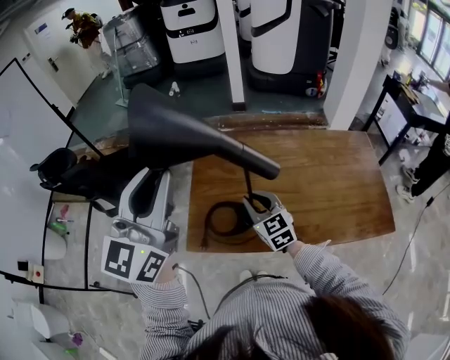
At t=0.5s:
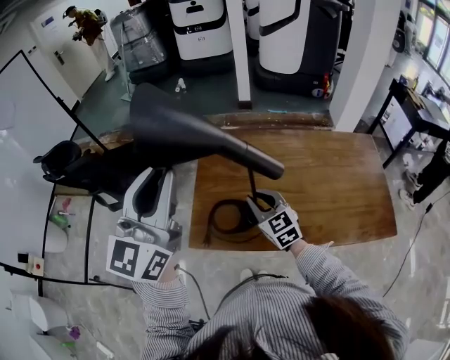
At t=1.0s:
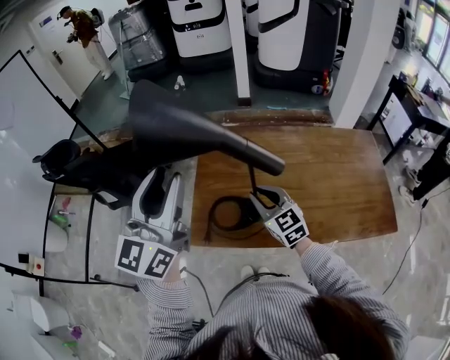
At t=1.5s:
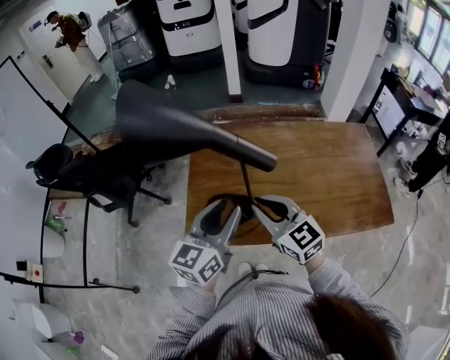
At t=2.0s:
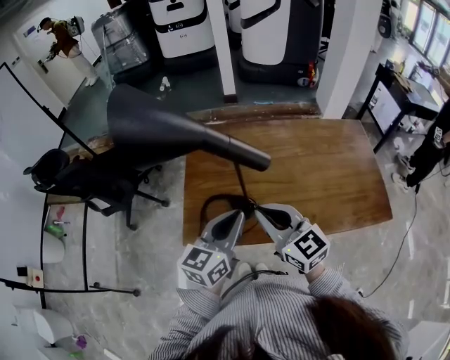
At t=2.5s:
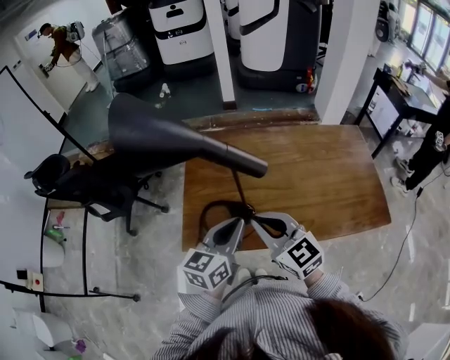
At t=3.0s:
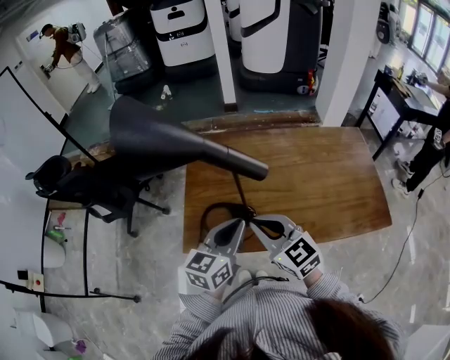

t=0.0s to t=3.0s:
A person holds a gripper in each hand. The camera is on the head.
t=0.0s to t=1.5s: The left gripper is displaced downward and to the right by roughly 20 cm, changes its angle by roughly 30 degrees, and opens its fingers. The right gripper moves backward and upward, about 10 cm.
t=1.5s to t=3.0s: The left gripper changes place by about 5 cm, and closes up.

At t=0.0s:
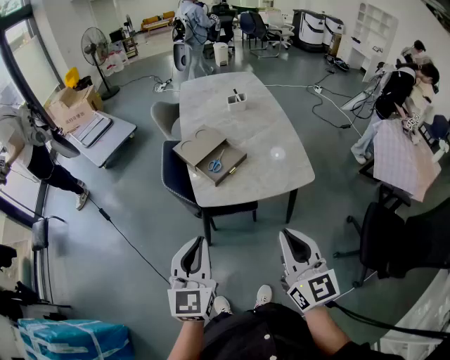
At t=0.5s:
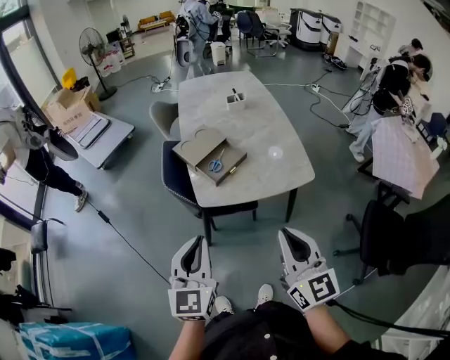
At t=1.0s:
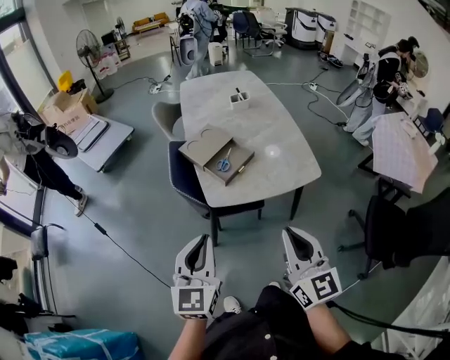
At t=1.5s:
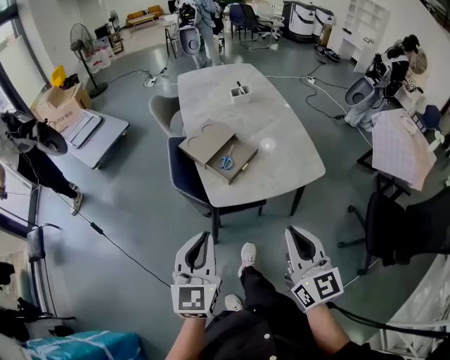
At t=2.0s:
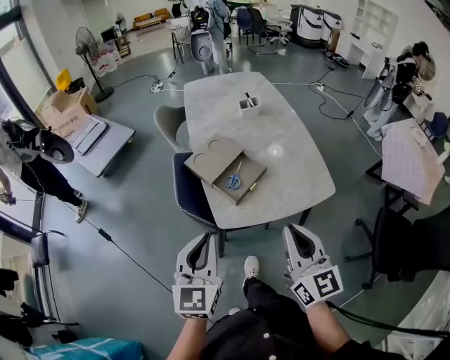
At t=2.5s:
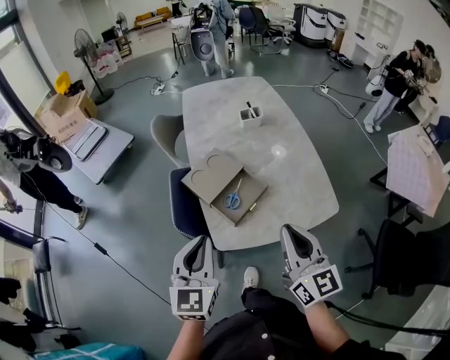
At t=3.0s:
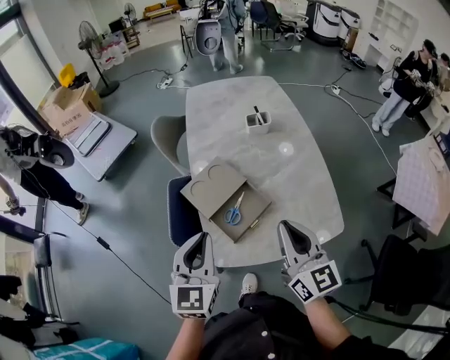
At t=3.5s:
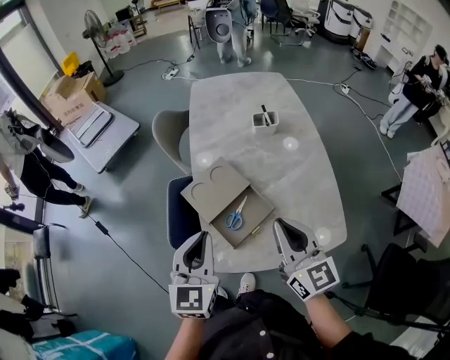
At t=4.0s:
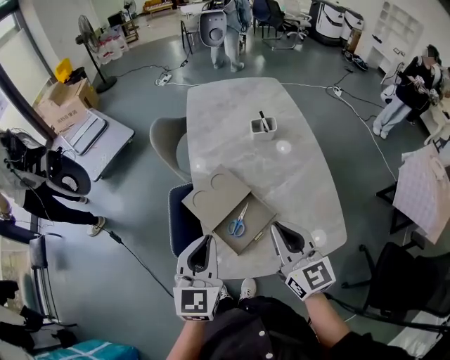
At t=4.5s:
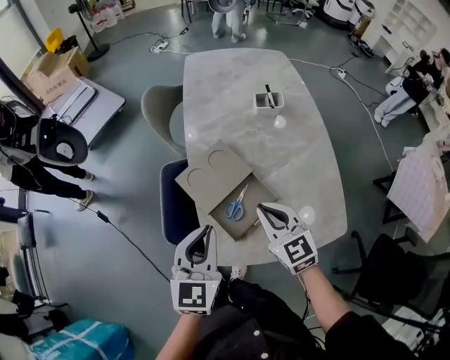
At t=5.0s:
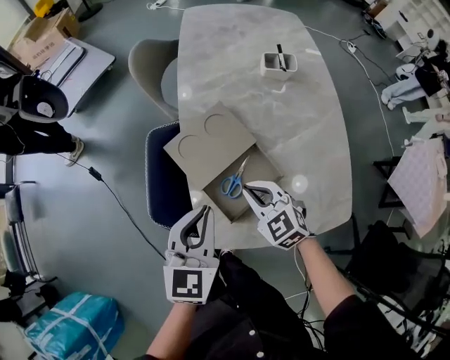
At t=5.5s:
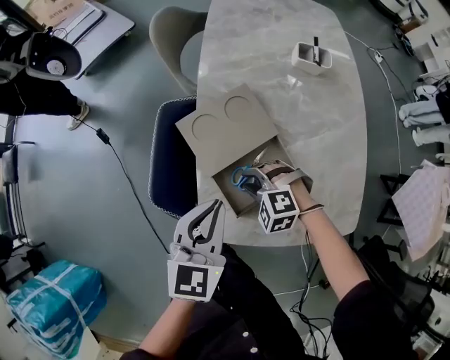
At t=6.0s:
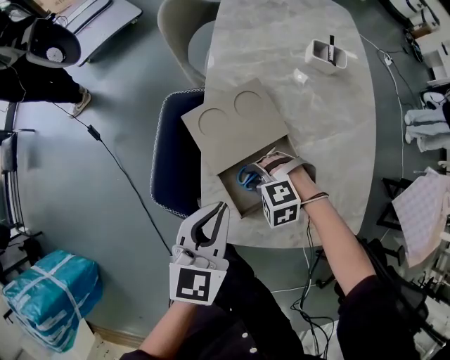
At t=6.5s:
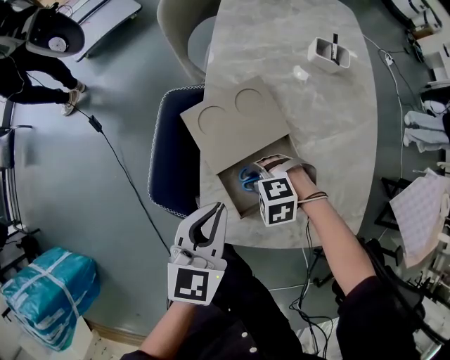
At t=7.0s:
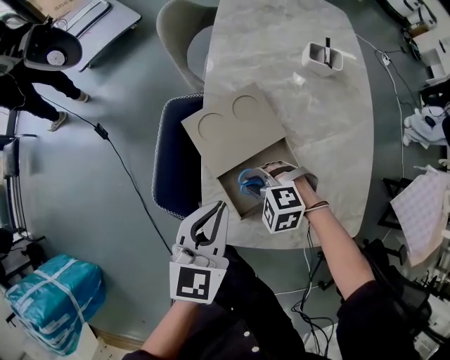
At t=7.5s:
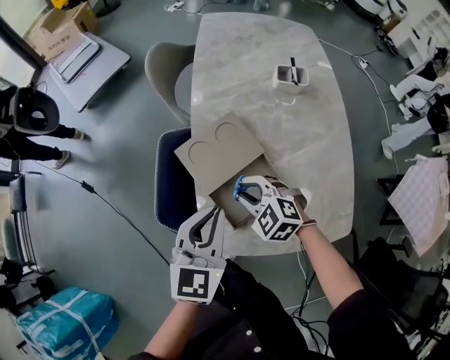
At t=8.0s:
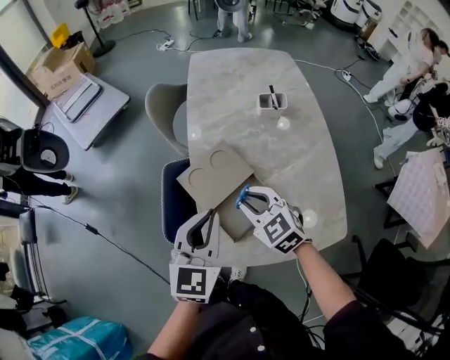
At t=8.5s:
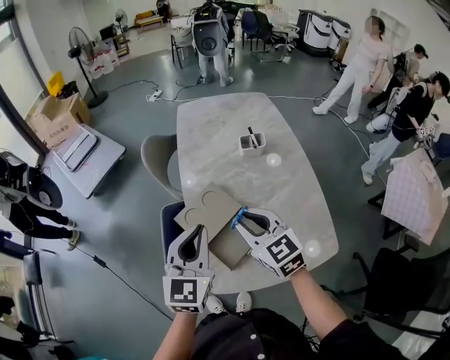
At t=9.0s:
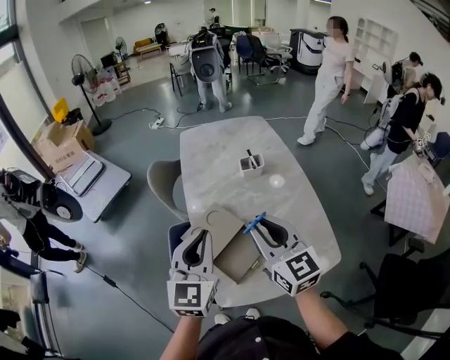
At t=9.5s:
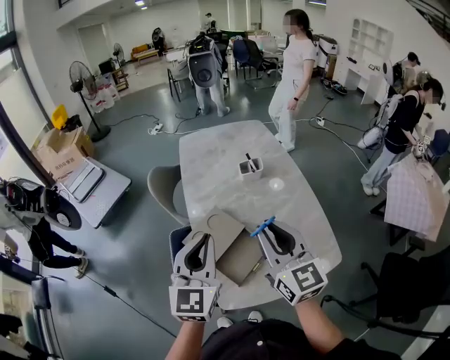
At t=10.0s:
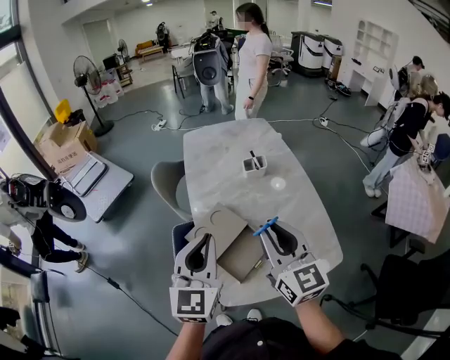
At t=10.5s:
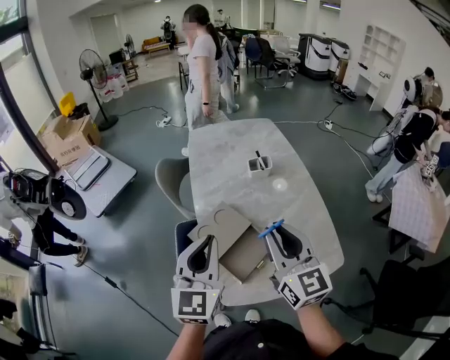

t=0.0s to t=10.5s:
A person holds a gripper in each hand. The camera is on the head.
t=0.0s to t=2.0s: The grippers both shift forward and to the left by roughly 15 cm.
t=2.0s to t=4.0s: The two grippers go some 25 cm forward.
t=4.0s to t=6.5s: The right gripper heads downward, covering roughly 35 cm, and tilts its fingers approximately 70 degrees downward; the left gripper shifts about 15 cm downward.
t=6.5s to t=8.5s: The left gripper heads upward, covering about 20 cm, and turns by about 20 degrees. Meanwhile the right gripper moves upward, approximately 35 cm, and tilts its fingers roughly 60 degrees upward.
t=8.5s to t=10.5s: The left gripper travels upward by some 5 cm. Meanwhile the right gripper is displaced upward by about 10 cm, and turns by approximately 30 degrees.

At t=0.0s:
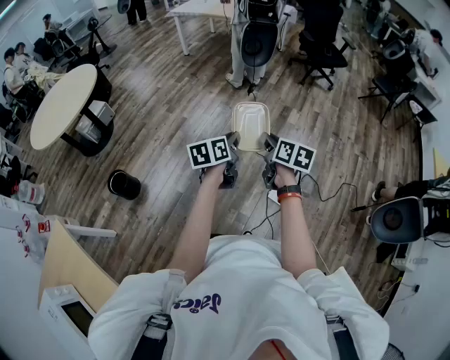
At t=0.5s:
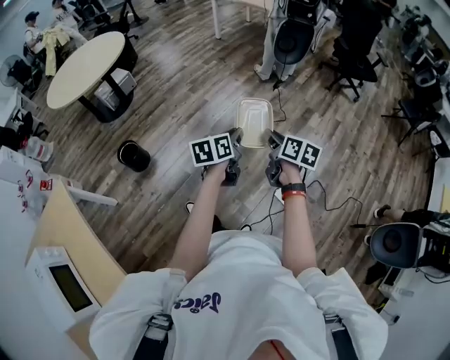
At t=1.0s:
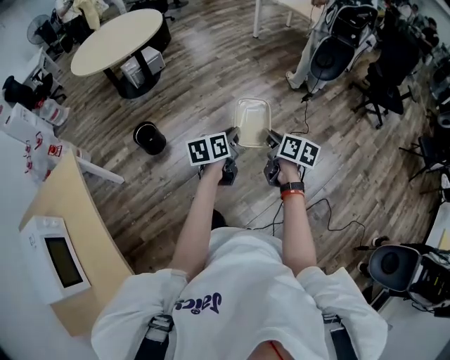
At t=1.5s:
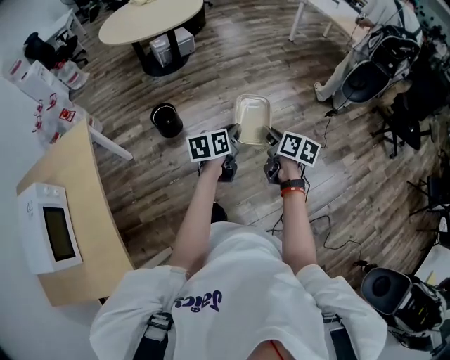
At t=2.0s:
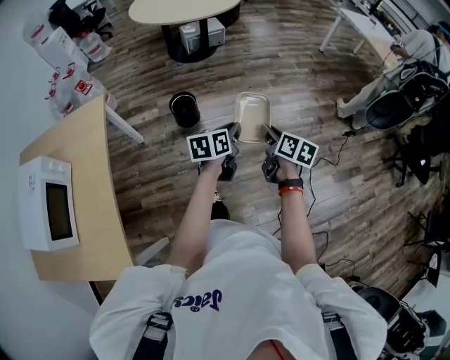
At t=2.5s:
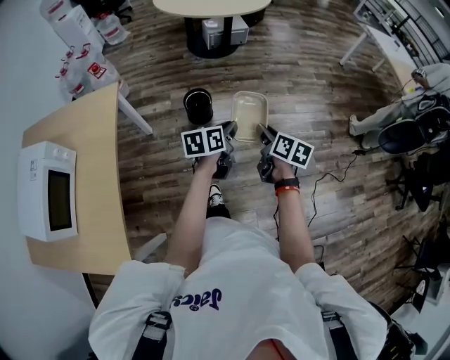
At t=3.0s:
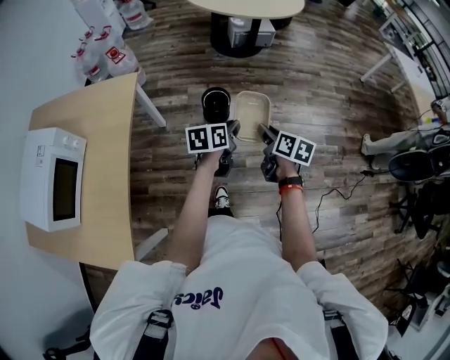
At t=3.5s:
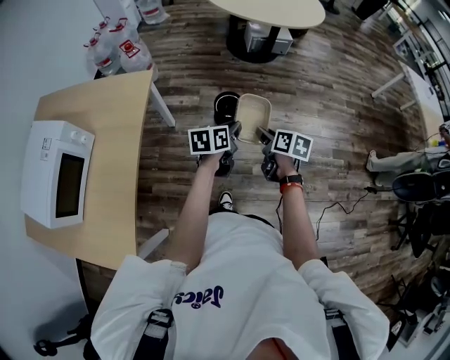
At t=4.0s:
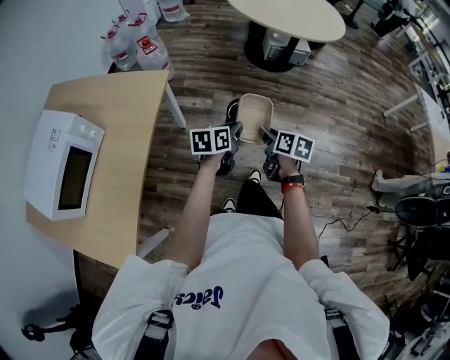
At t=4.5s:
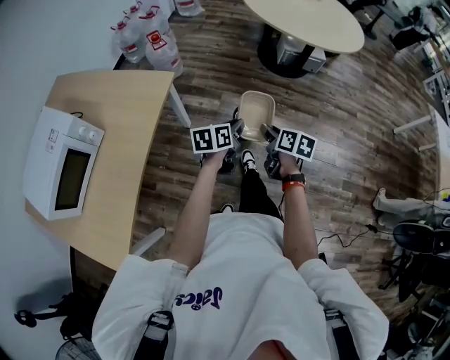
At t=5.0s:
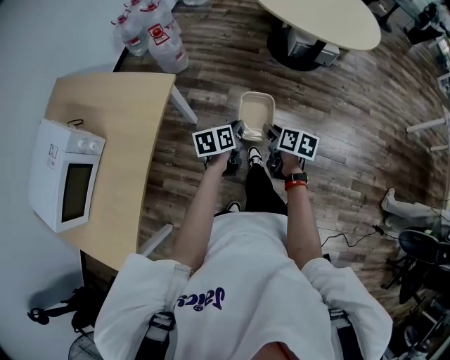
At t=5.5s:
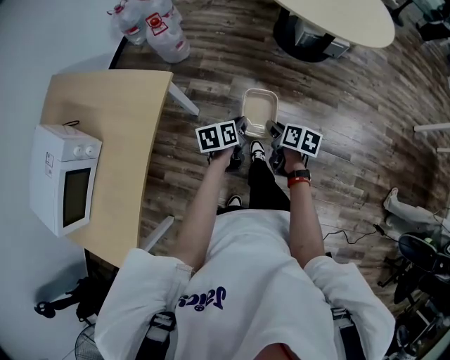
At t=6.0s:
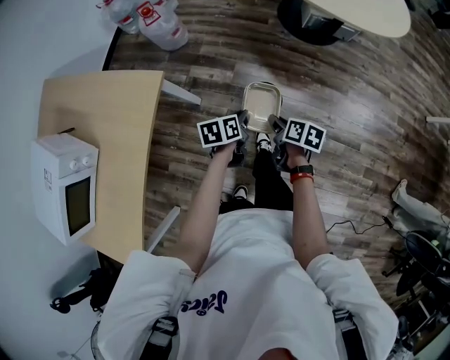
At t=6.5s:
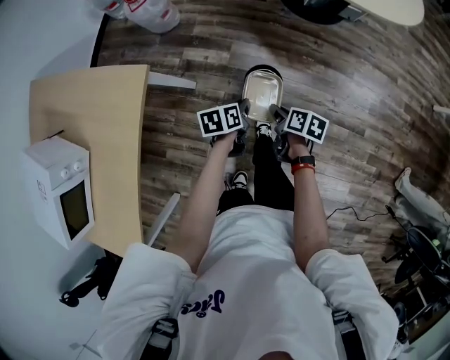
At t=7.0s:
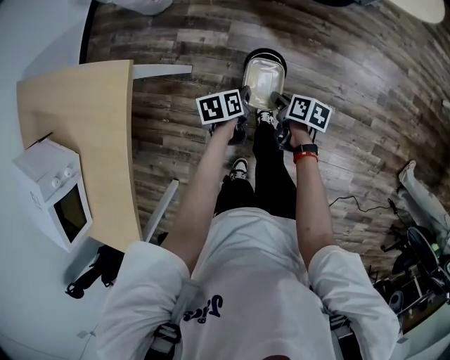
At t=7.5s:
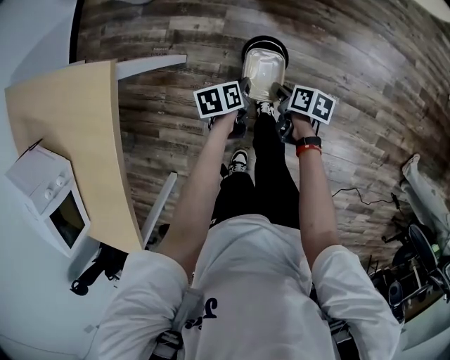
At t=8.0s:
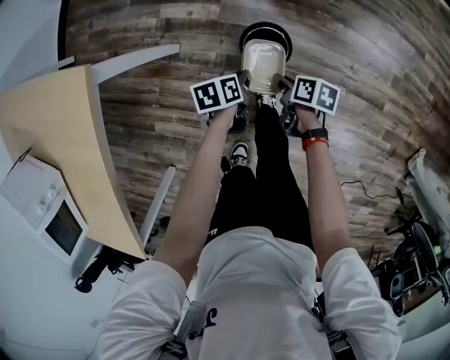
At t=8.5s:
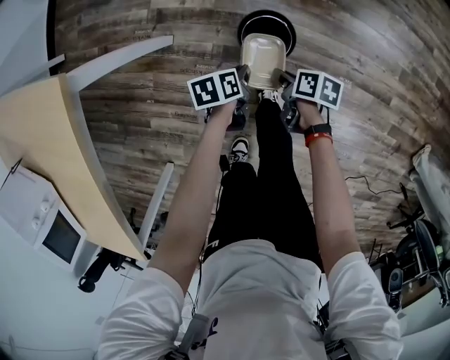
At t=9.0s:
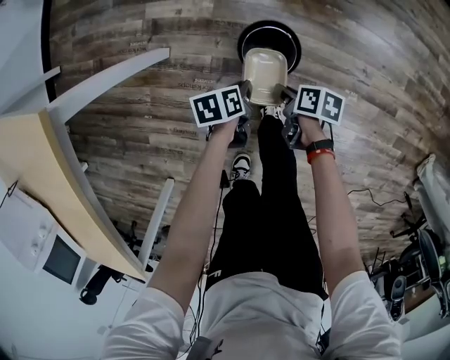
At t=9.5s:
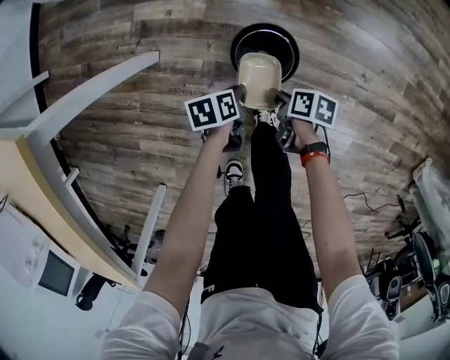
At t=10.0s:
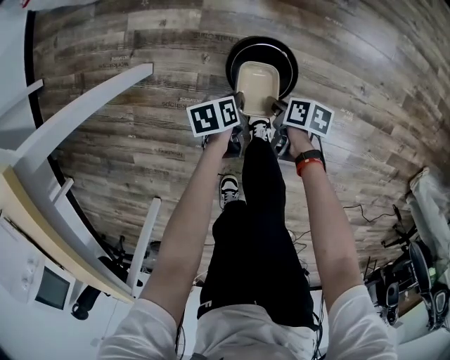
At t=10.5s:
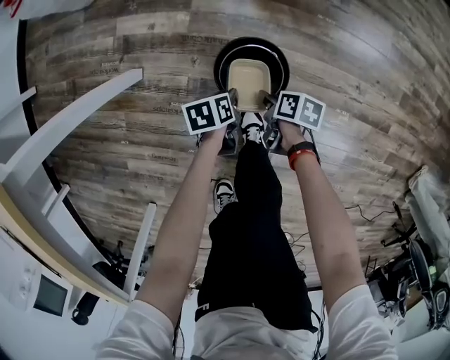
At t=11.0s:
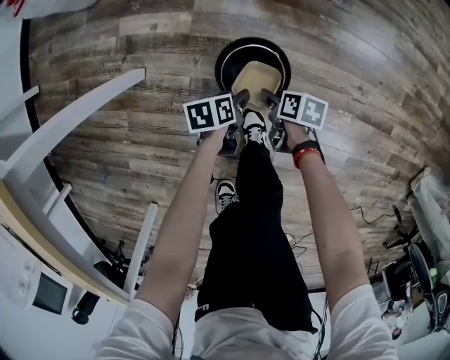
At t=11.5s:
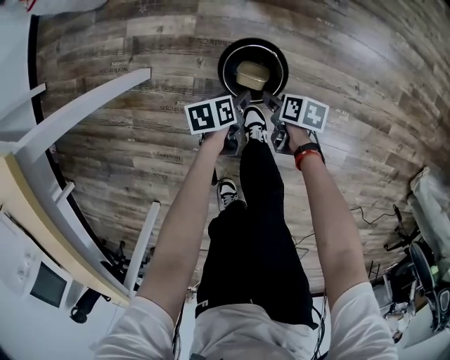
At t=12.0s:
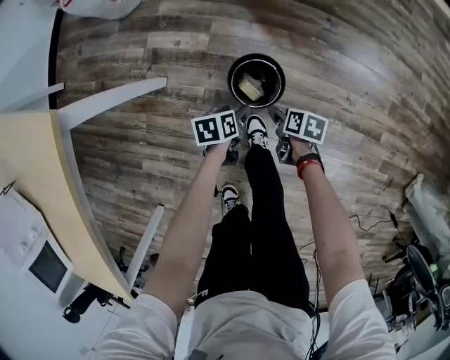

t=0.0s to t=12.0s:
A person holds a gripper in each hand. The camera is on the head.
t=0.0s to t=2.0s: Both grippers are carried some 40 cm. The right gripper turns by approximately 40 degrees. Meanwhile the left gripper swivels roughly 40 degrees.
t=2.0s to t=4.0s: Both grippers move to the left and forward, approximately 40 cm. The right gripper changes its angle by approximately 30 degrees.
t=4.0s to t=6.0s: The two grippers go some 35 cm forward and downward. The left gripper rotates about 20 degrees.
t=6.0s to t=8.0s: Both grippers travel together downward, approximately 35 cm.
t=8.0s to t=10.0s: The two grippers go some 30 cm downward.
t=10.0s to t=12.0s: The grippers both shift upward by approximately 15 cm. The right gripper opens; the left gripper opens.

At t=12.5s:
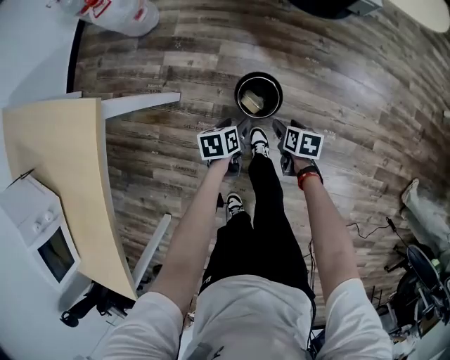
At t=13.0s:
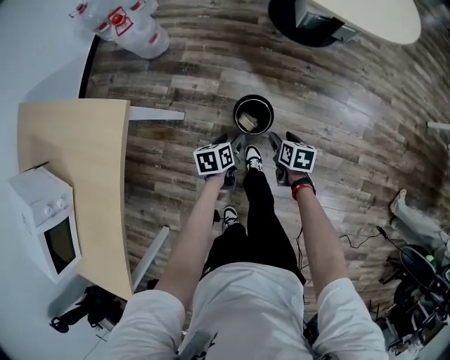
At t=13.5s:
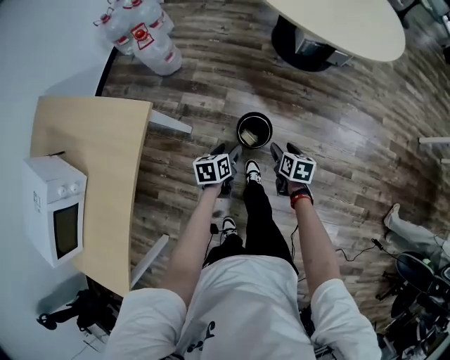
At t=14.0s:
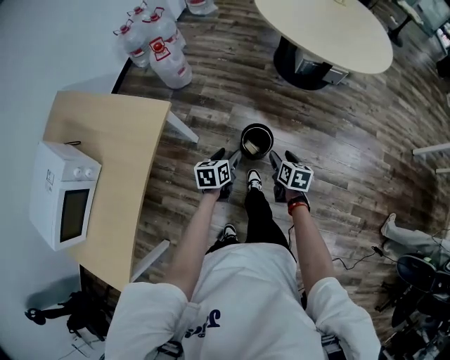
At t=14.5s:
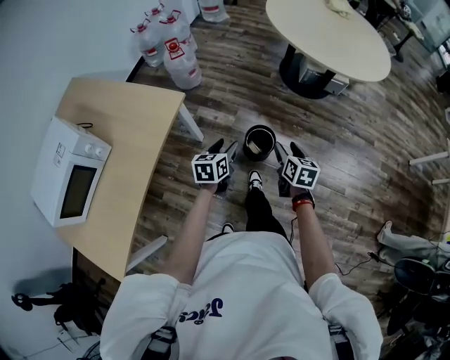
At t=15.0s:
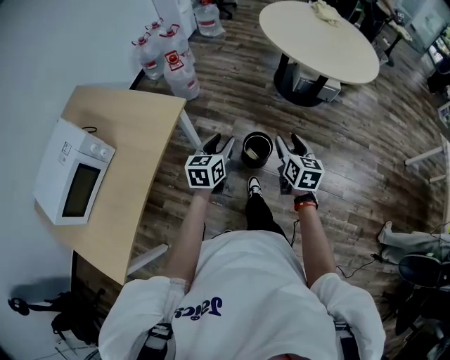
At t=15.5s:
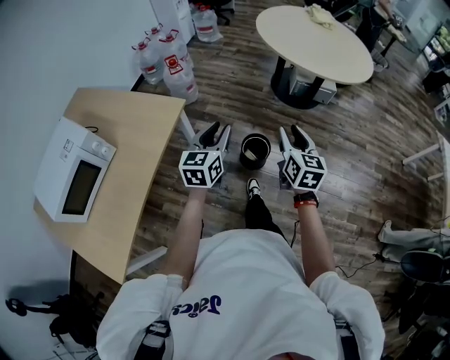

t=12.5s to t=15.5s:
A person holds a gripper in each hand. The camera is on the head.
t=12.5s to t=14.0s: The left gripper travels upward and backward by about 40 cm, and swivels about 20 degrees. The right gripper goes some 35 cm upward, and changes its angle by some 20 degrees.
t=14.0s to t=15.5s: Both grippers travel together upward and backward, approximately 30 cm. The right gripper swivels roughly 30 degrees, and closes, while the left gripper rotates about 40 degrees, and closes.
